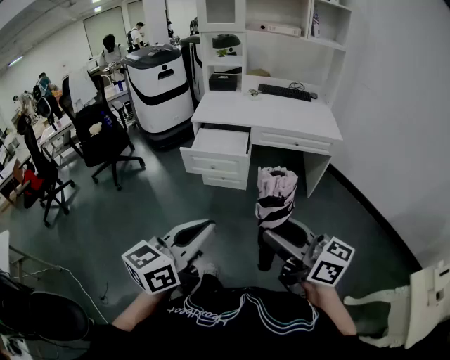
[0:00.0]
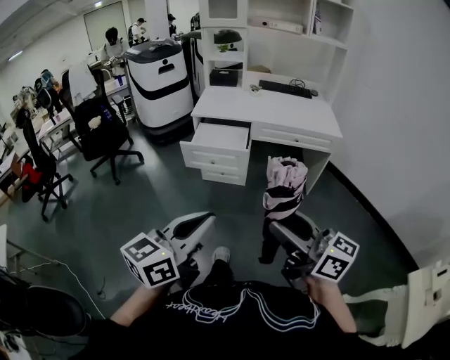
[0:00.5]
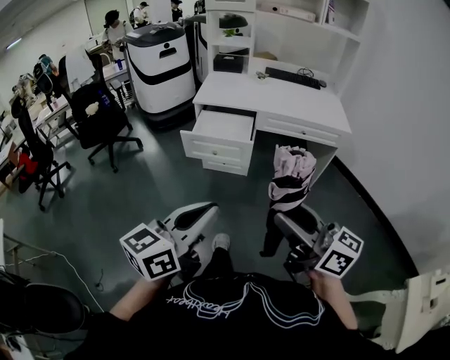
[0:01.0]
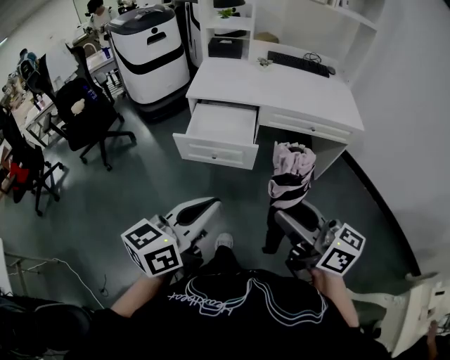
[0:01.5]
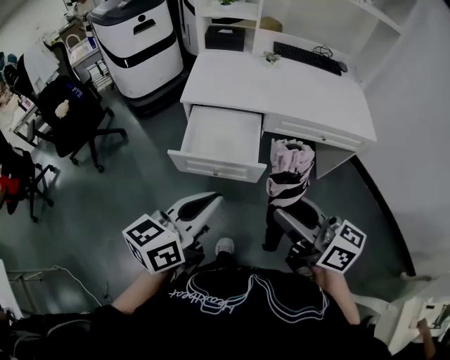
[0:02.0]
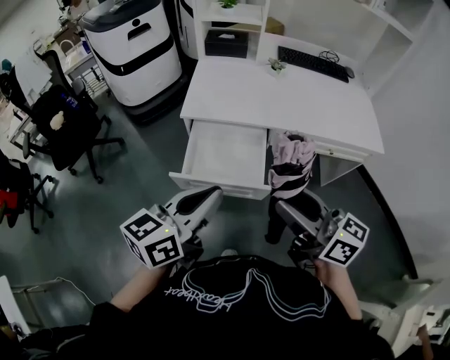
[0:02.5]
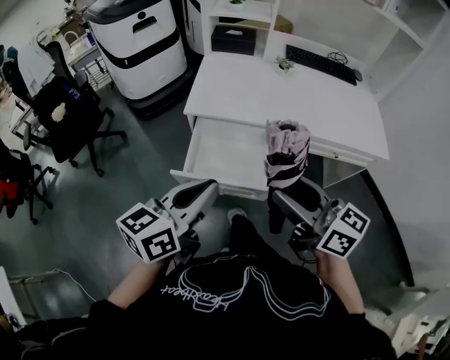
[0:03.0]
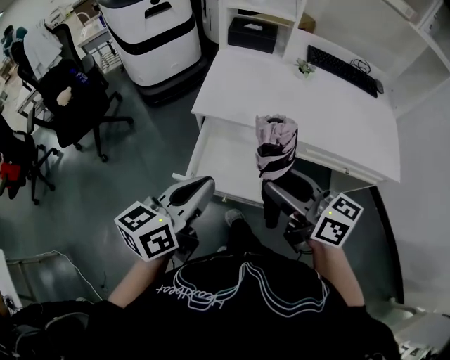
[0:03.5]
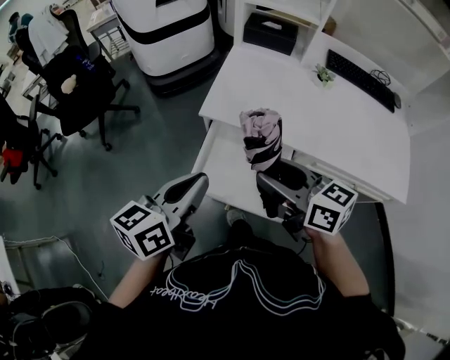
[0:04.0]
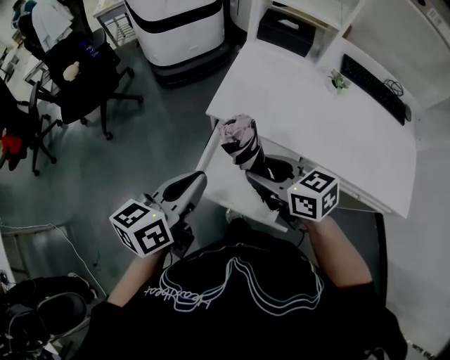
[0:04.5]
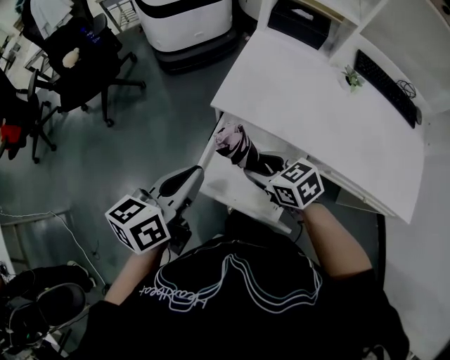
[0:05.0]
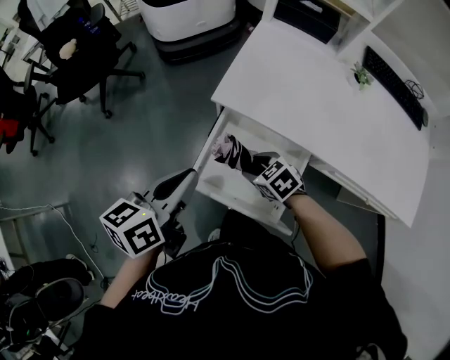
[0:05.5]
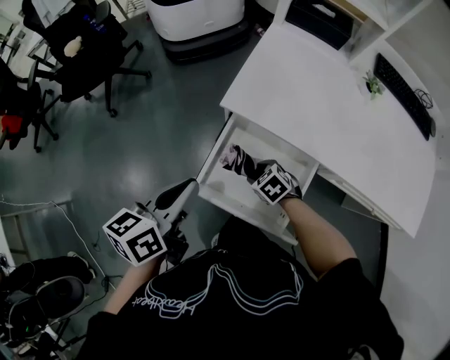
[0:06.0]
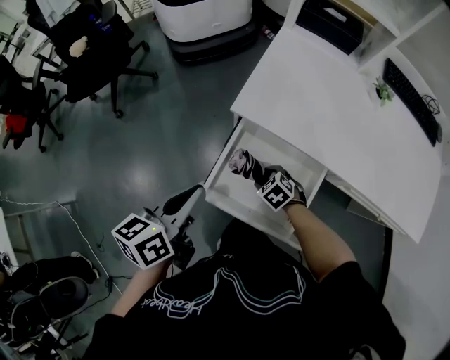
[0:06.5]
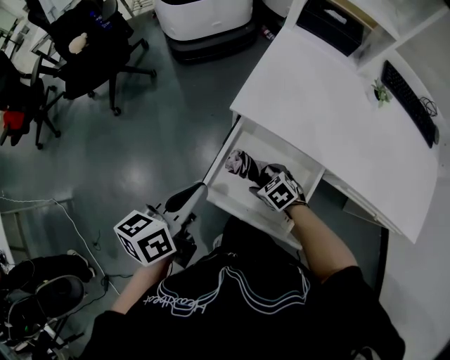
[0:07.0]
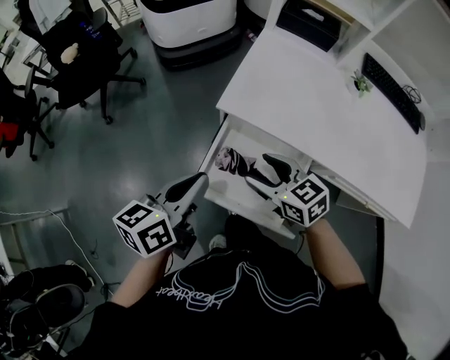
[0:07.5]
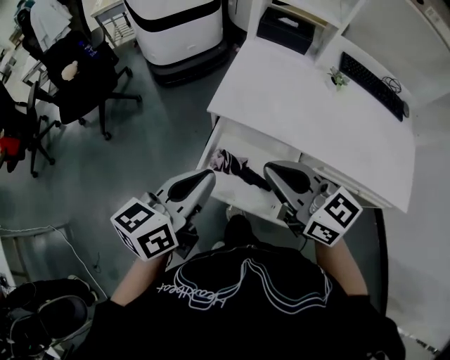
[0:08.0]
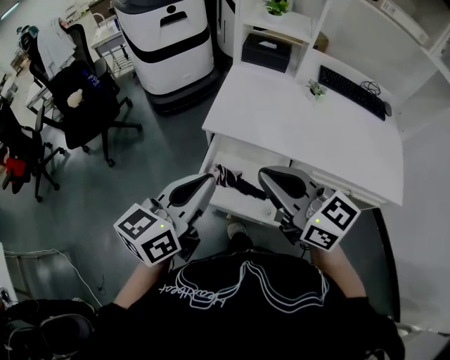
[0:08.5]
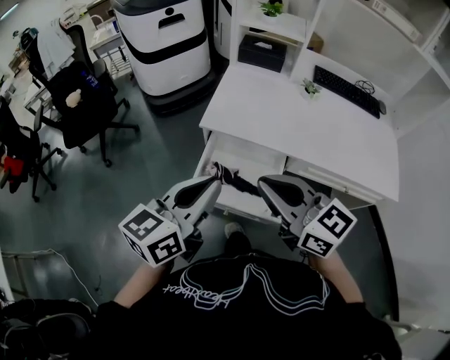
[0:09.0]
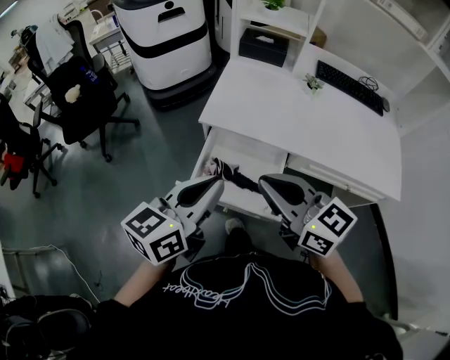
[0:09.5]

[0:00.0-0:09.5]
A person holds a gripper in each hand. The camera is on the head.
0:00.0 to 0:02.0: Both grippers move forward, roughly 35 cm.
0:02.0 to 0:04.0: Both grippers travel together forward, roughly 25 cm. The right gripper rotates some 20 degrees.
0:04.0 to 0:05.5: The left gripper moves downward, about 5 cm. Meanwhile the right gripper shifts about 25 cm downward, and angles its fingers downward, by some 40 degrees.
0:05.5 to 0:07.5: The right gripper heads upward, covering some 10 cm, and turns by about 30 degrees.
0:07.5 to 0:09.5: The left gripper moves upward, backward and to the right, roughly 15 cm, and changes its angle by about 20 degrees. The right gripper moves upward and backward, approximately 25 cm, swivels approximately 30 degrees, and closes up.

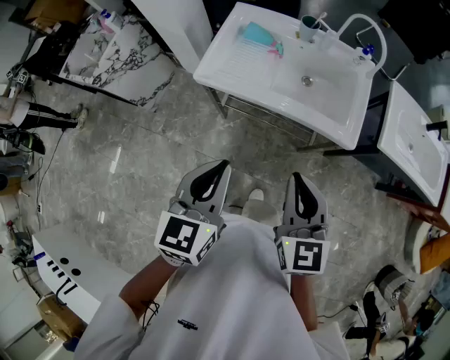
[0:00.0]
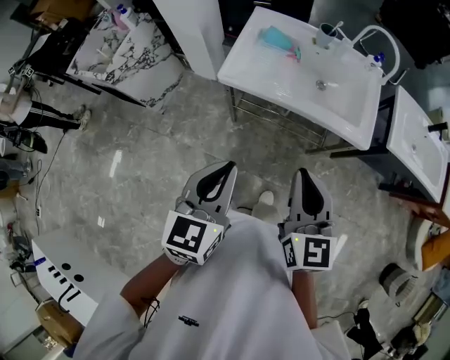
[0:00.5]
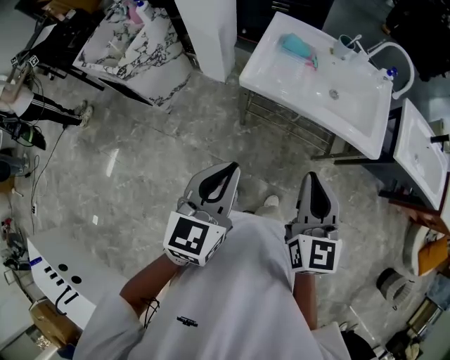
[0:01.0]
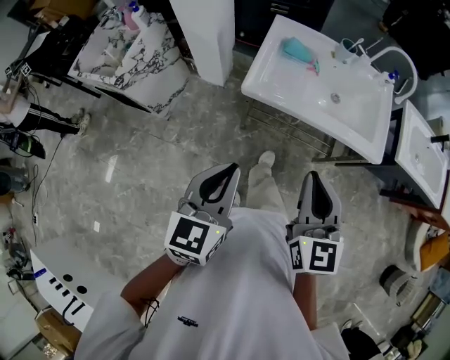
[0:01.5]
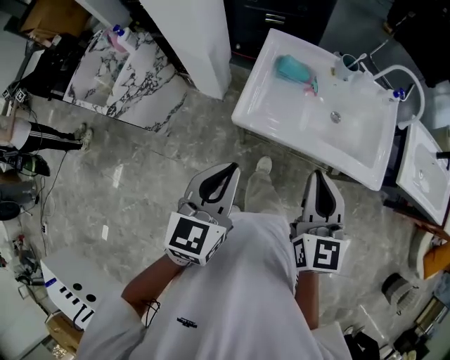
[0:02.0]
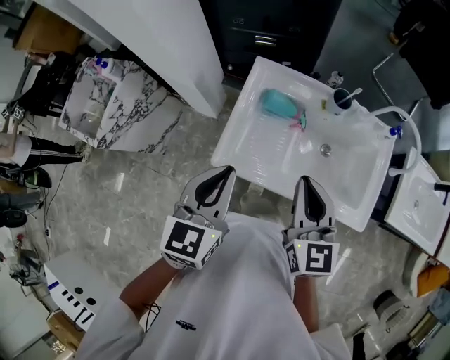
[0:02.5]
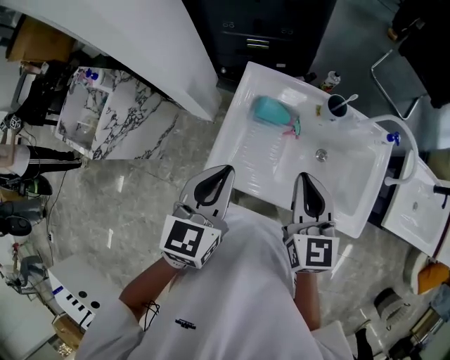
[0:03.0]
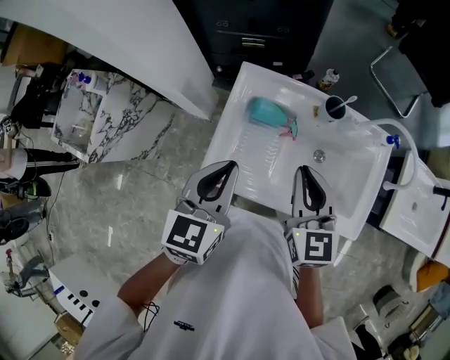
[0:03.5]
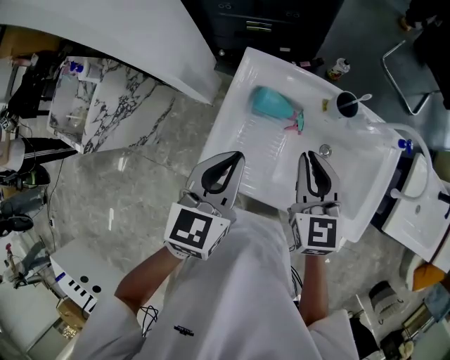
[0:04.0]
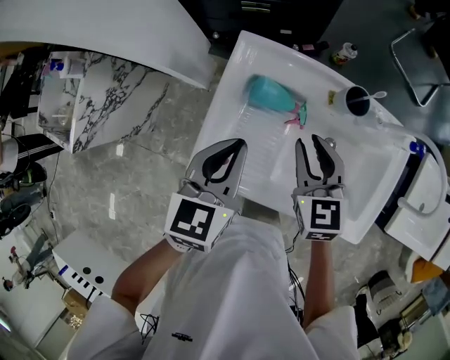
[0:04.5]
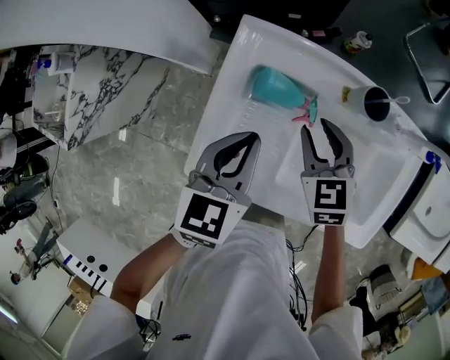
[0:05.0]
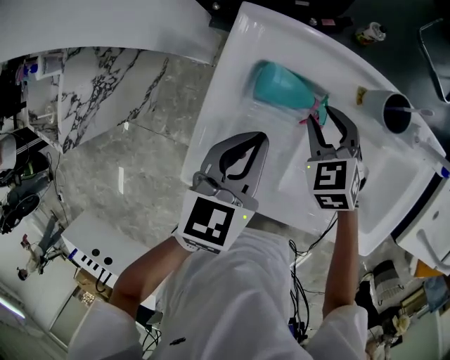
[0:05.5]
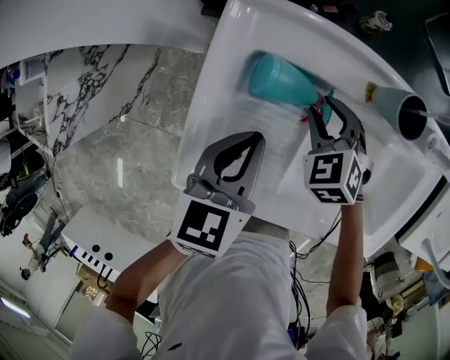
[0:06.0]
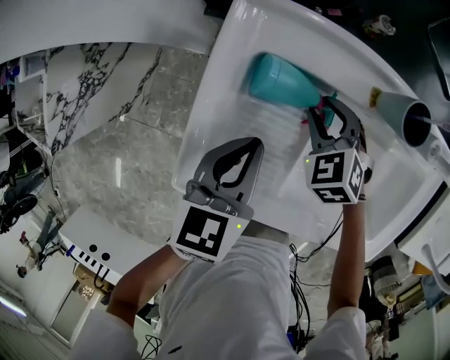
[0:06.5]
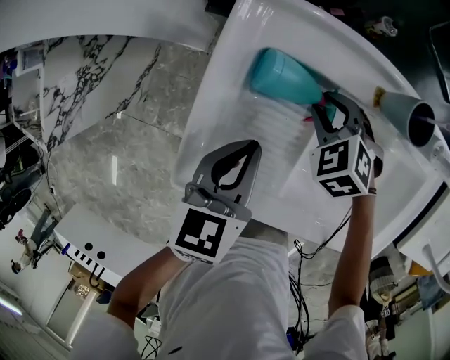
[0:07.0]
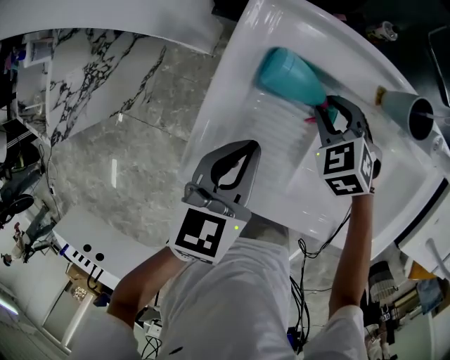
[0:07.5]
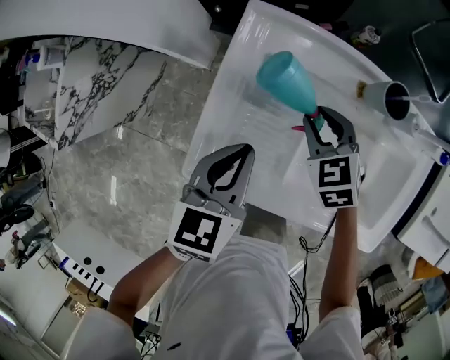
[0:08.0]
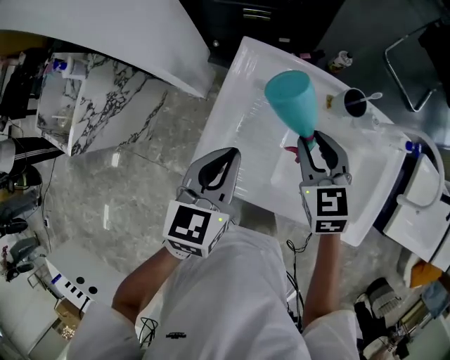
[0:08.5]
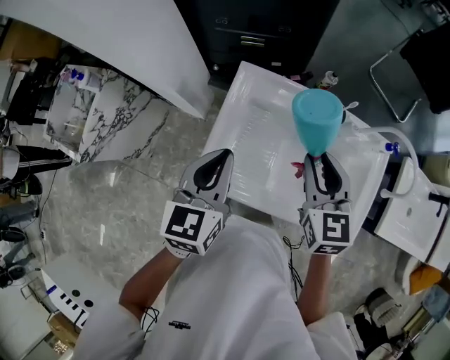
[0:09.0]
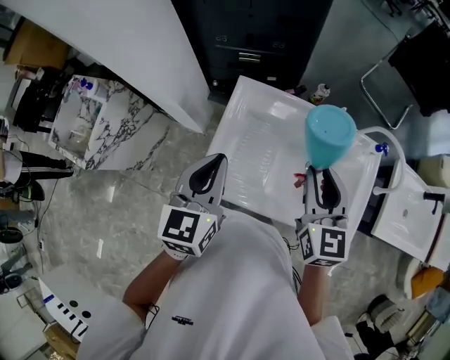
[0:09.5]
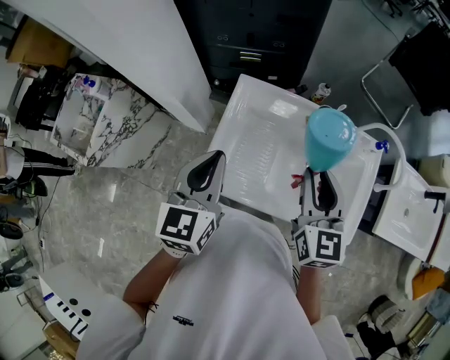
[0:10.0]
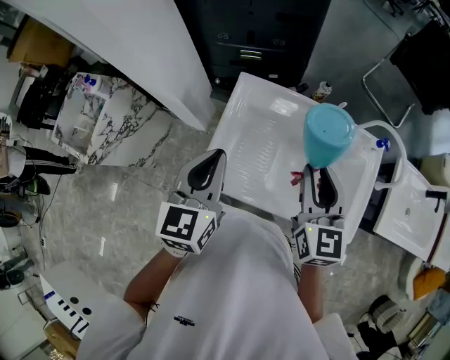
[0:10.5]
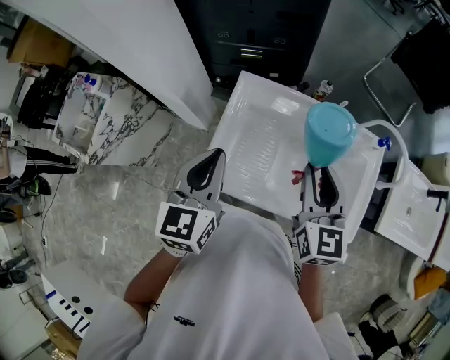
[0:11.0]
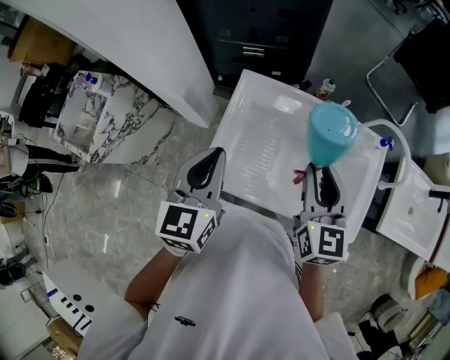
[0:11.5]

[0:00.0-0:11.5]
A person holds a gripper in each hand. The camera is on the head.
0:00.0 to 0:02.0: The two grippers go some 20 cm to the left and forward.
0:02.0 to 0:04.0: Both grippers travel together forward, some 30 cm.
0:04.0 to 0:06.0: The right gripper goes about 30 cm downward, points its fingers about 30 degrees further downward, and opens. The left gripper moves downward and forward, roughly 20 cm.
0:06.0 to 0:07.5: There are only small adjustments of the grippers.
0:07.5 to 0:09.5: The grippers both shift upward by about 30 cm. The right gripper tilts its fingers roughly 40 degrees upward. The left gripper changes its angle by some 20 degrees.
0:09.5 to 0:11.5: The grippers move only a little.

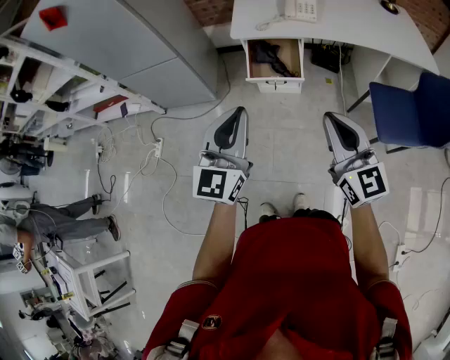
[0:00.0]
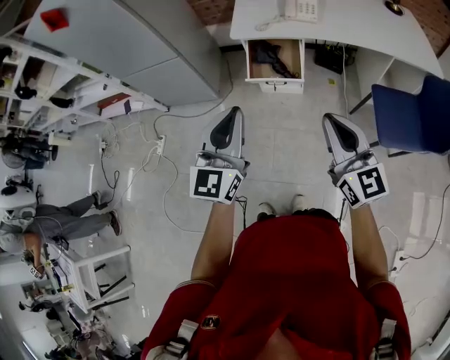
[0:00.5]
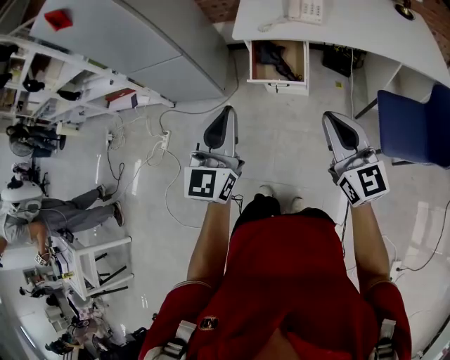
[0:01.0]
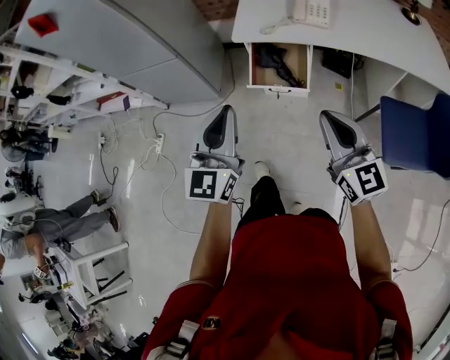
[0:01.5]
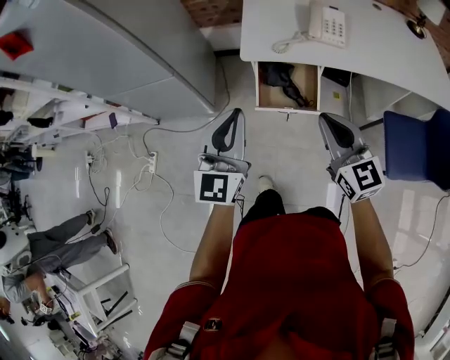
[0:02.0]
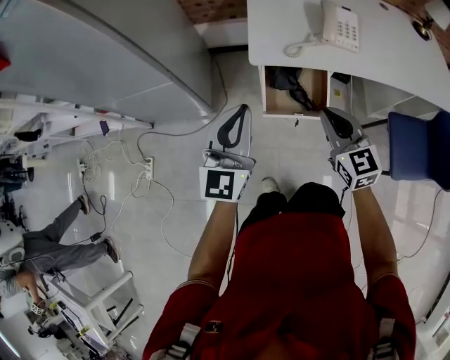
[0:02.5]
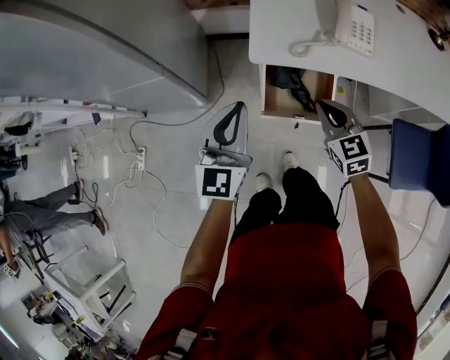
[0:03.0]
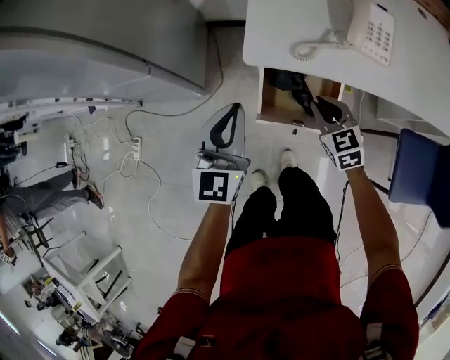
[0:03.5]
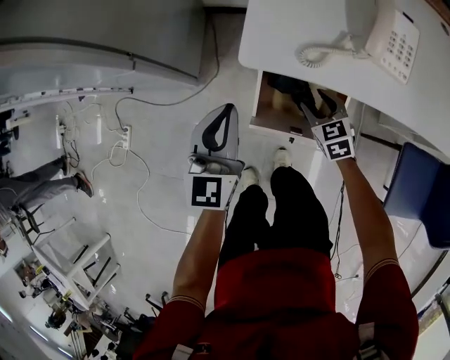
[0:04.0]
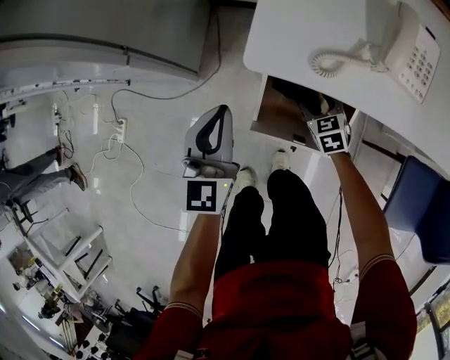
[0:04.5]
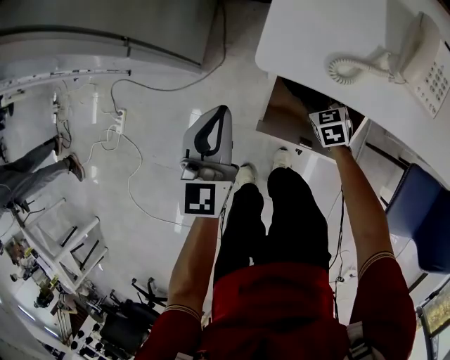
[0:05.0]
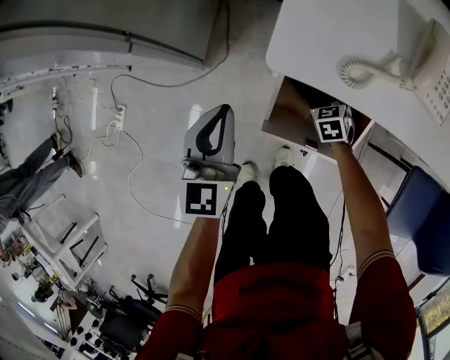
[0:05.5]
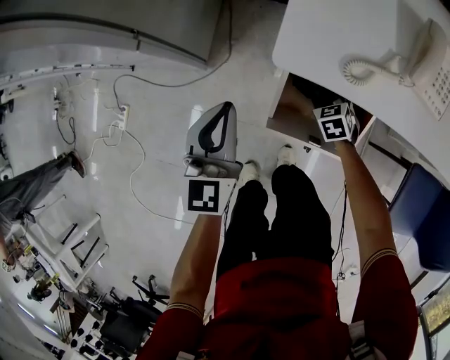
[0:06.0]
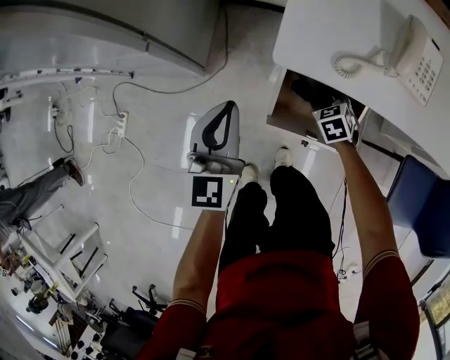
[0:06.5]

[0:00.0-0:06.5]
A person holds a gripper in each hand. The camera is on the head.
0:00.0 to 0:02.0: The two grippers go roughly 25 cm forward.
0:02.0 to 0:04.5: The right gripper goes approximately 50 cm downward and forward, angles its fingers downward, by approximately 40 degrees, and opens its fingers. Meanwhile the left gripper shifts some 35 cm downward and forward, and rotates about 20 degrees.
0:04.5 to 0:06.5: The right gripper goes downward and returns, about 5 cm each way. Meanwhile the left gripper heads to the left, covering approximately 5 cm.
